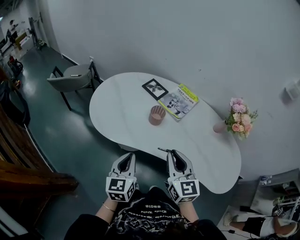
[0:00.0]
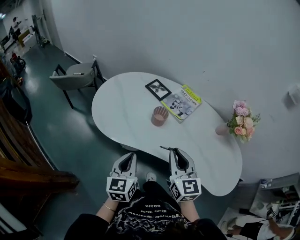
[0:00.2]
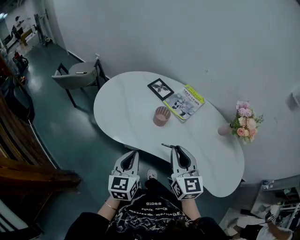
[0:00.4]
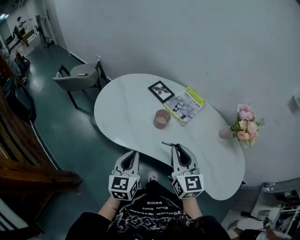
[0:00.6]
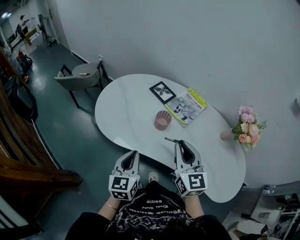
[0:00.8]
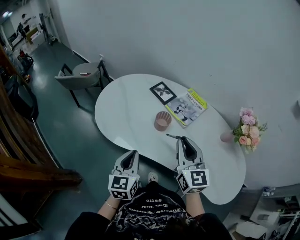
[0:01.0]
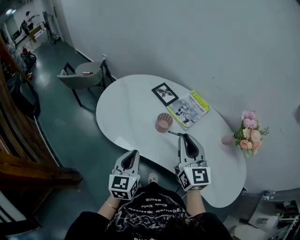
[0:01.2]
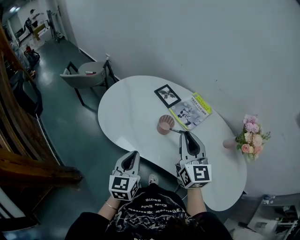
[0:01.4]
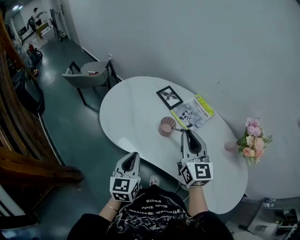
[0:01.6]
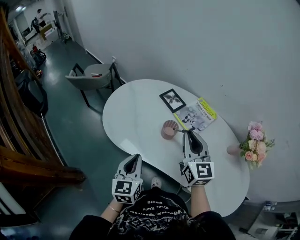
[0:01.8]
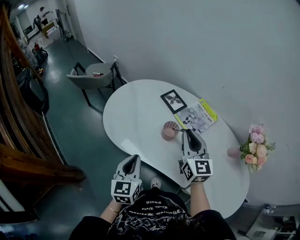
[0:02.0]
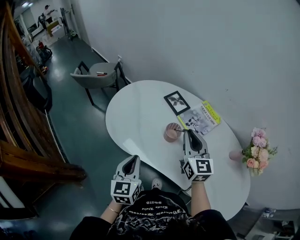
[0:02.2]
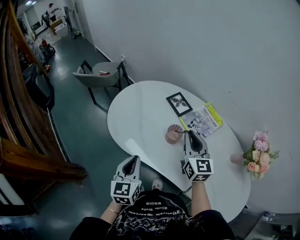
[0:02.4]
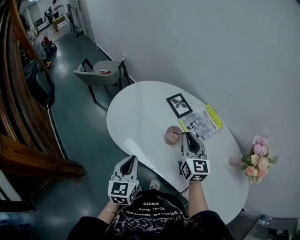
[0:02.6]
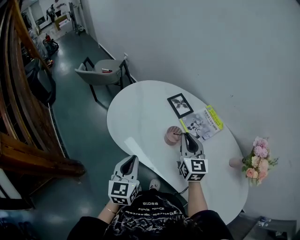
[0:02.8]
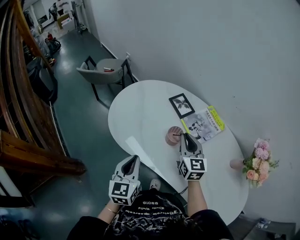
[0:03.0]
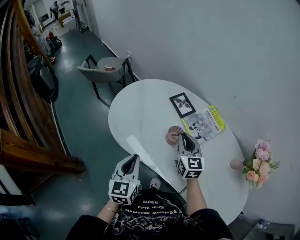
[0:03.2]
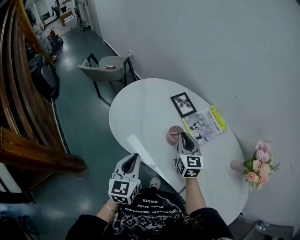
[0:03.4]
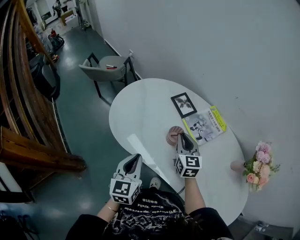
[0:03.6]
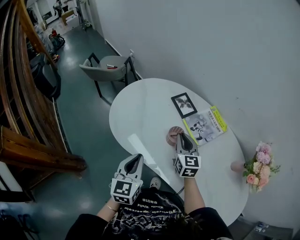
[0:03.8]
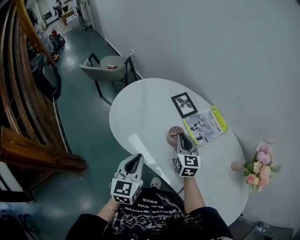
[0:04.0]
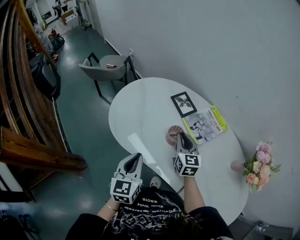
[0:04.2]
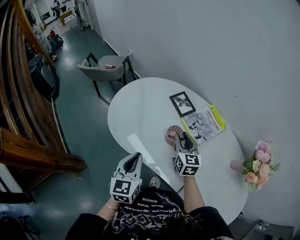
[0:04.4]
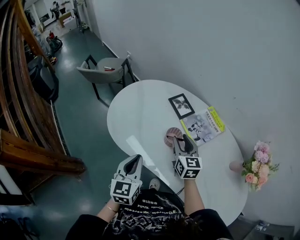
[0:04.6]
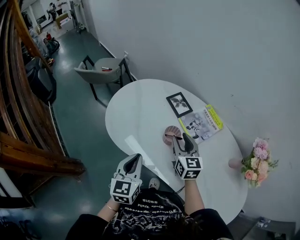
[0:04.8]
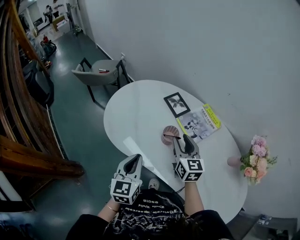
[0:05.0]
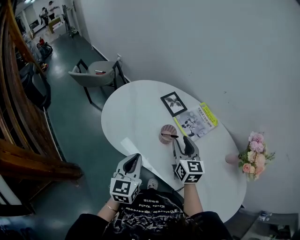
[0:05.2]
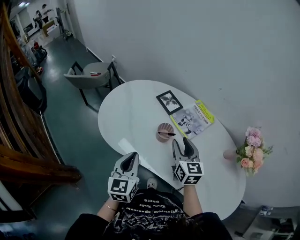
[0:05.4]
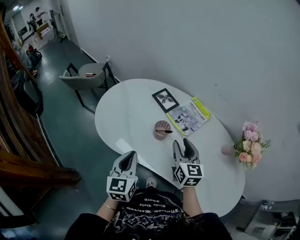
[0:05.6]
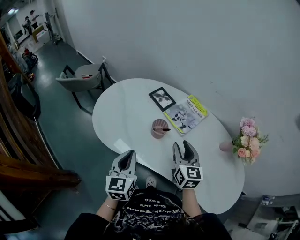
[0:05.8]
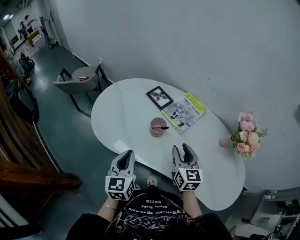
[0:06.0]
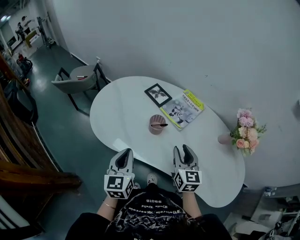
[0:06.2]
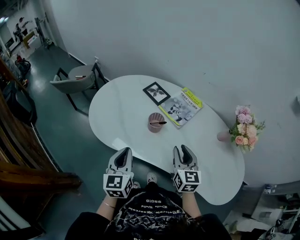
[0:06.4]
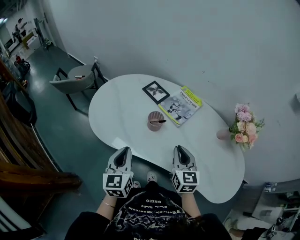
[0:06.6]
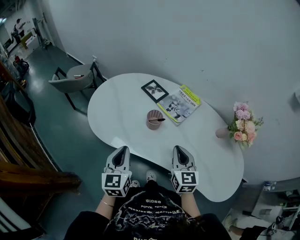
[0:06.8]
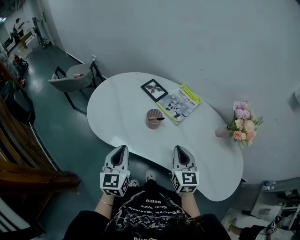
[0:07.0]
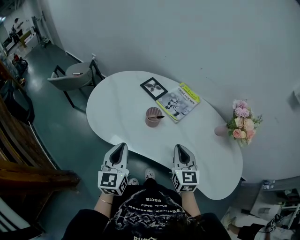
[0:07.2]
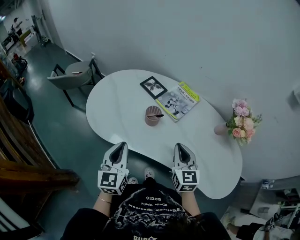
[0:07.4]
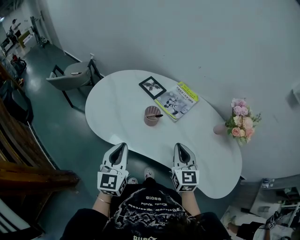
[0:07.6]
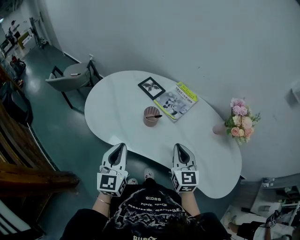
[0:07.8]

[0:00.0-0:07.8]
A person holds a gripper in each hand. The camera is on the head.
0:00.0 to 0:01.6: The left gripper travels forward by some 5 cm. The right gripper is displaced forward by about 15 cm.
0:01.6 to 0:03.2: The right gripper shifts some 15 cm downward and forward.
0:03.2 to 0:04.6: The right gripper opens its fingers.
0:04.6 to 0:06.2: The right gripper shifts roughly 15 cm backward and to the right.
0:06.2 to 0:07.8: The right gripper closes its fingers.

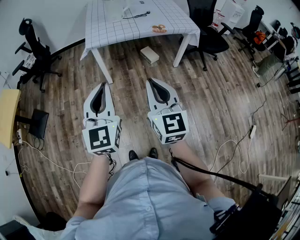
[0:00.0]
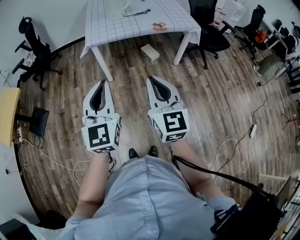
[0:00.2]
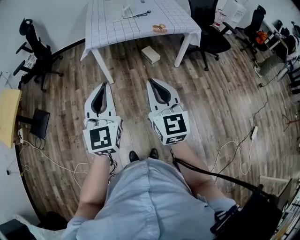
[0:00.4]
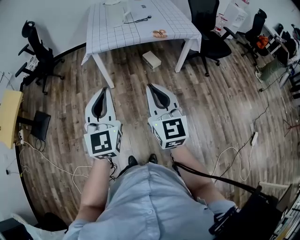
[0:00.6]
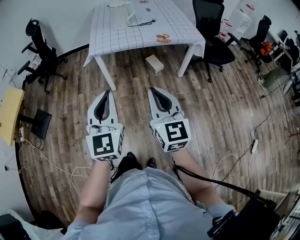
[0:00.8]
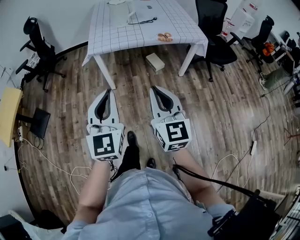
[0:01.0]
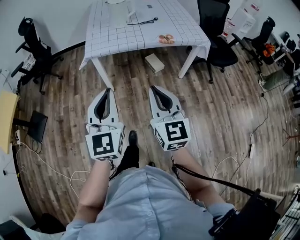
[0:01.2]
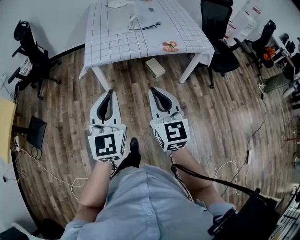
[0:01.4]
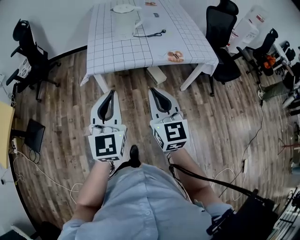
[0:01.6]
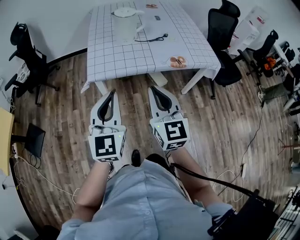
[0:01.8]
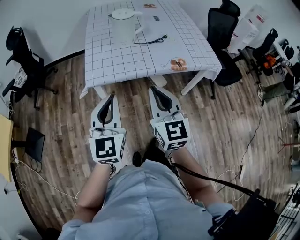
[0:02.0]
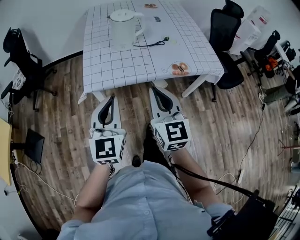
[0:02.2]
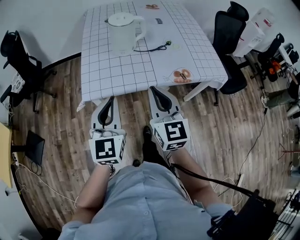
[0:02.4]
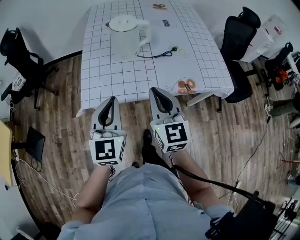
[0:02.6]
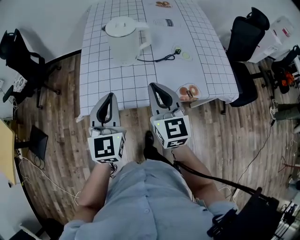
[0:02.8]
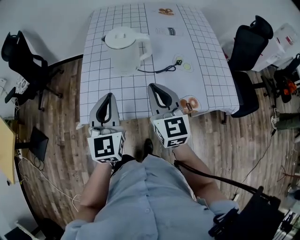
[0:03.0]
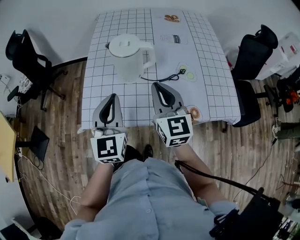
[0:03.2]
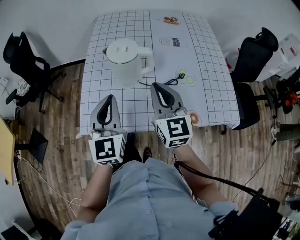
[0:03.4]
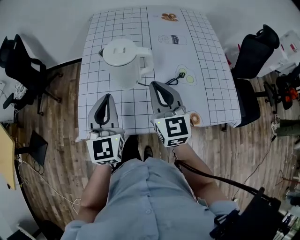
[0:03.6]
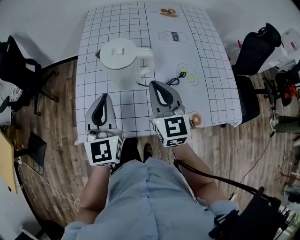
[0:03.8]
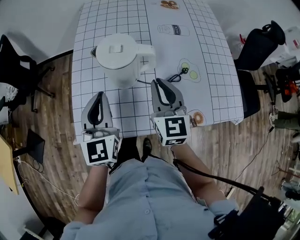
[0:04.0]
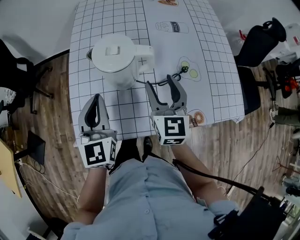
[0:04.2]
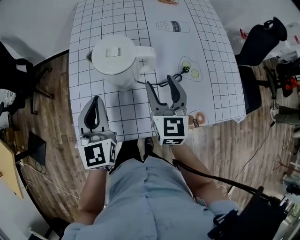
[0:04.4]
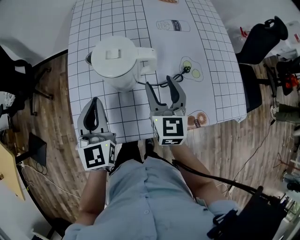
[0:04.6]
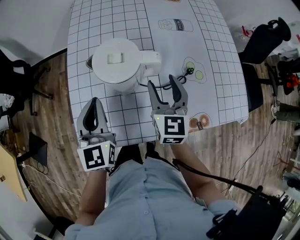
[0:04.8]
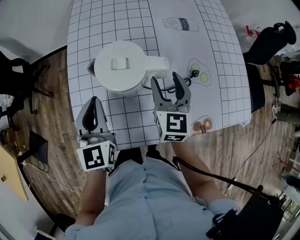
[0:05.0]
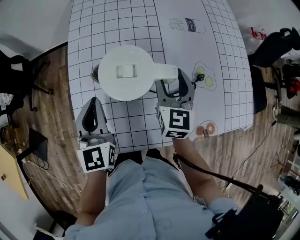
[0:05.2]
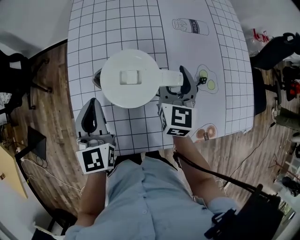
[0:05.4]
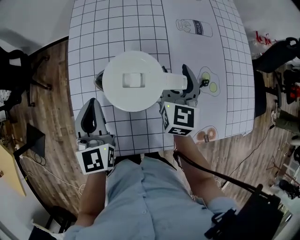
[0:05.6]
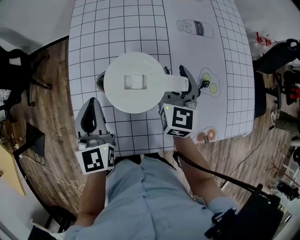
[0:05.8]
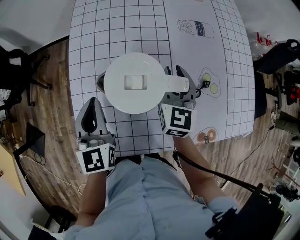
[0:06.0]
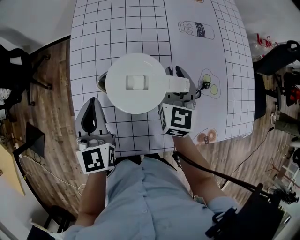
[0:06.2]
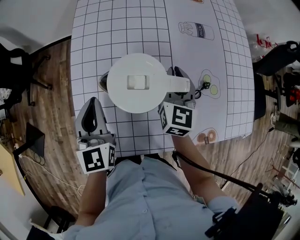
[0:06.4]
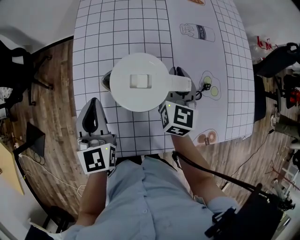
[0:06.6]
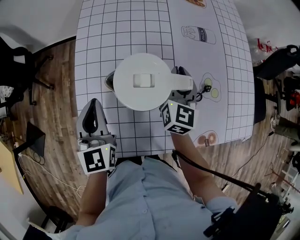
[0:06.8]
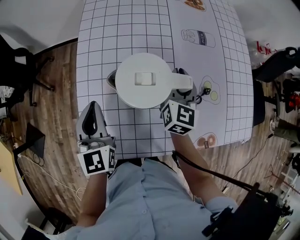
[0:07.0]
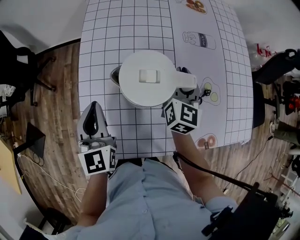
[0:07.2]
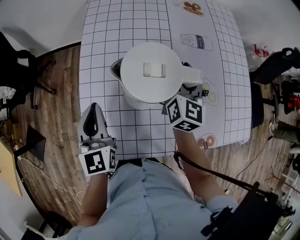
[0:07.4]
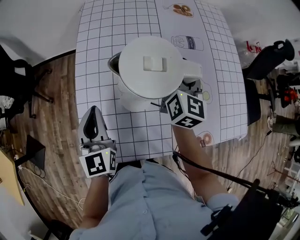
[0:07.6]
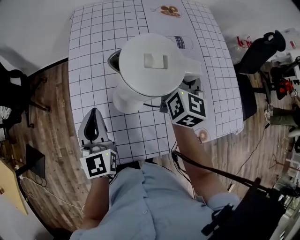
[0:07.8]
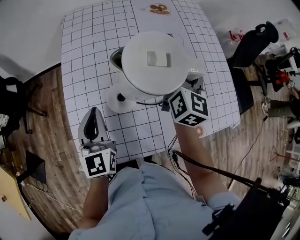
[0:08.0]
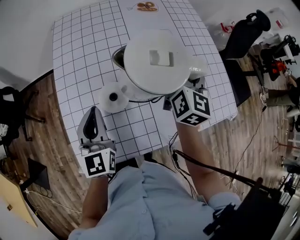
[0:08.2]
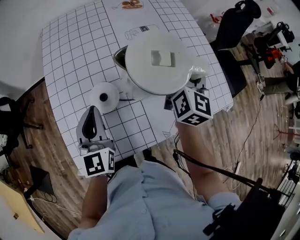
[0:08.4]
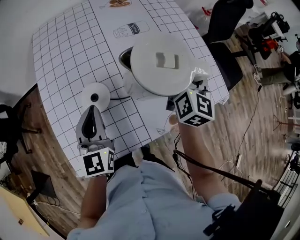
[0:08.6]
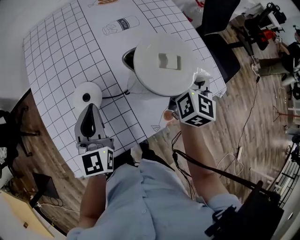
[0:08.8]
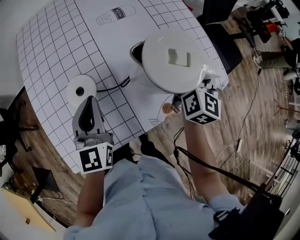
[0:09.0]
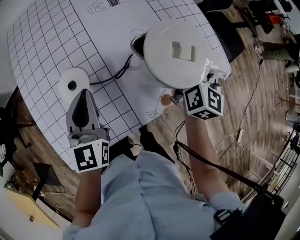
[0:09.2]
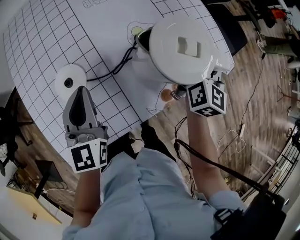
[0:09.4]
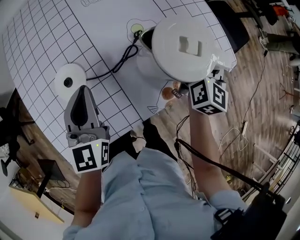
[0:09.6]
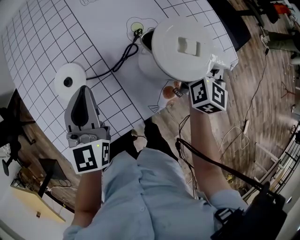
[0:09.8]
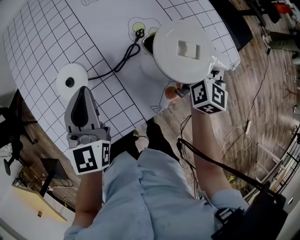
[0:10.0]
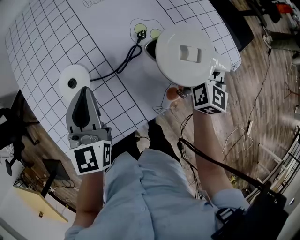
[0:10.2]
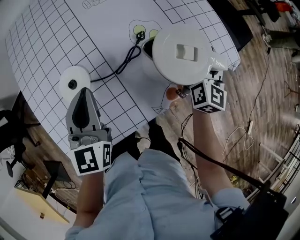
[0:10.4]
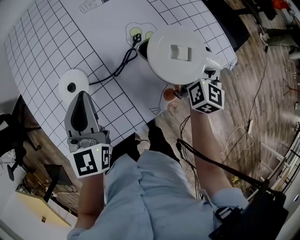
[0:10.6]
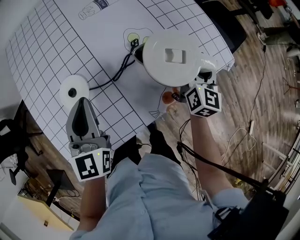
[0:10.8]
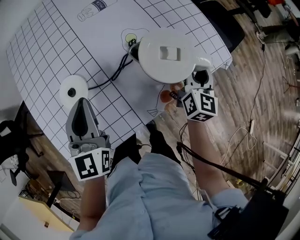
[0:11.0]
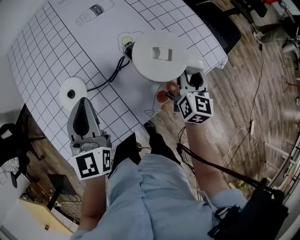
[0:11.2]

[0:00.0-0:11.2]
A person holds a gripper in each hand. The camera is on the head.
0:00.0 to 0:01.6: The grippers both shift forward by approximately 25 cm.
0:01.6 to 0:03.2: Both grippers move forward, approximately 40 cm.
0:03.2 to 0:04.8: The right gripper travels forward and downward by roughly 15 cm, and opens, while the left gripper goes roughly 15 cm forward, downward and to the left.
0:04.8 to 0:06.4: The right gripper shifts roughly 10 cm forward, and closes up. The left gripper goes some 5 cm forward.
0:06.4 to 0:08.0: The right gripper moves upward and to the right, some 15 cm, and turns by some 20 degrees. Meanwhile the left gripper moves about 5 cm.
0:08.0 to 0:09.6: The right gripper is displaced to the right by approximately 30 cm, and swivels some 30 degrees. The left gripper heads to the right, covering approximately 15 cm, and rotates roughly 20 degrees.
0:09.6 to 0:11.2: The right gripper moves backward, roughly 5 cm, and opens up; the left gripper shifts by roughly 5 cm.

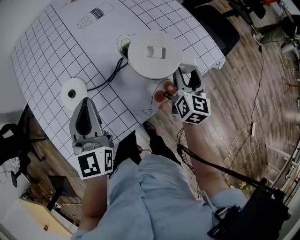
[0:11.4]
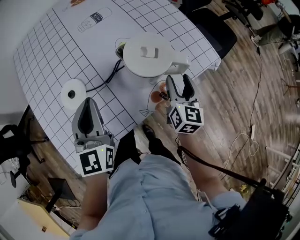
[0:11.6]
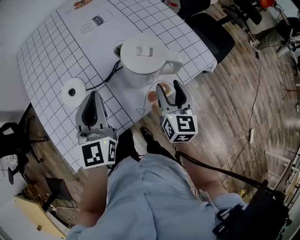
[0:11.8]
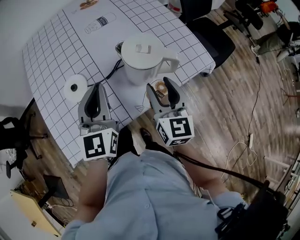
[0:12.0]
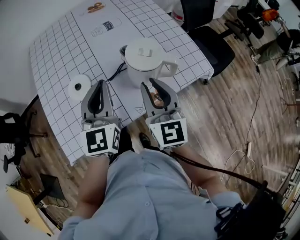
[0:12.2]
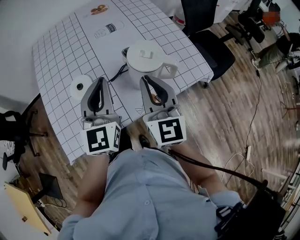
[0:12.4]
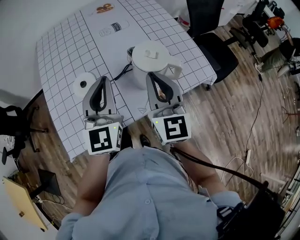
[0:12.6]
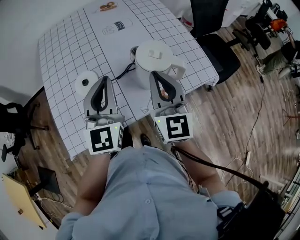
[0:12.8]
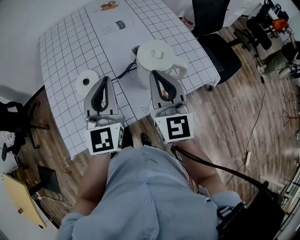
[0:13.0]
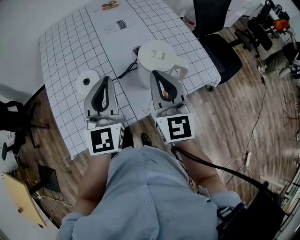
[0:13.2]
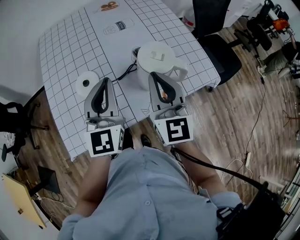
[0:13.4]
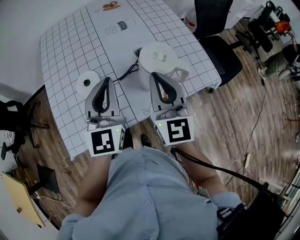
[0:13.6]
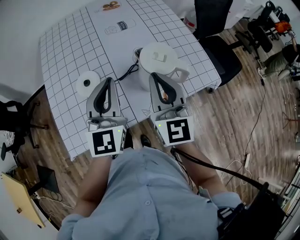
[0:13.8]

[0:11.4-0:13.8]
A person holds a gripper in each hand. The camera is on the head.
0:11.4 to 0:12.6: The left gripper travels upward by roughly 5 cm; the right gripper moves upward and to the left, about 20 cm, changes its angle by roughly 40 degrees, and closes up.
0:12.6 to 0:13.8: The grippers move only a little.

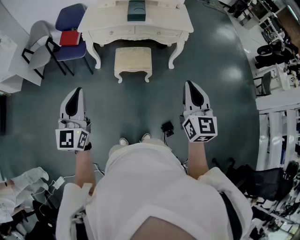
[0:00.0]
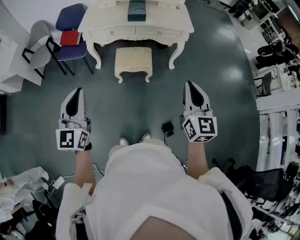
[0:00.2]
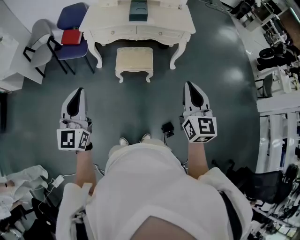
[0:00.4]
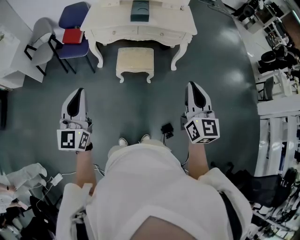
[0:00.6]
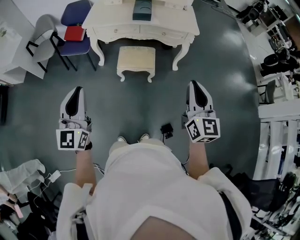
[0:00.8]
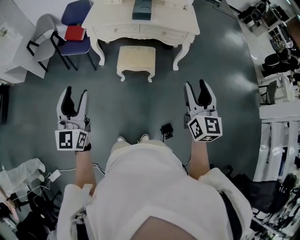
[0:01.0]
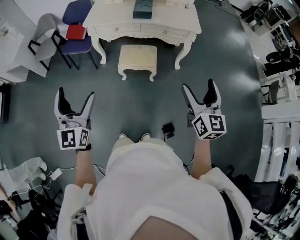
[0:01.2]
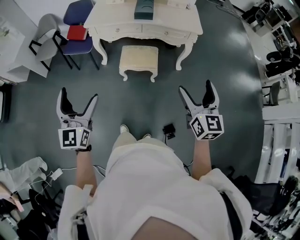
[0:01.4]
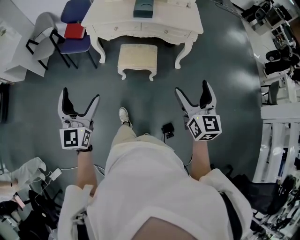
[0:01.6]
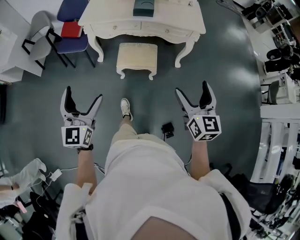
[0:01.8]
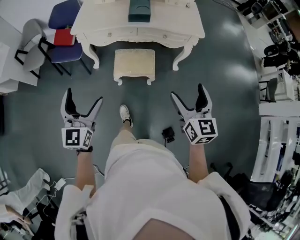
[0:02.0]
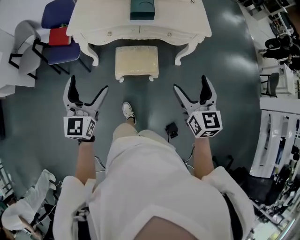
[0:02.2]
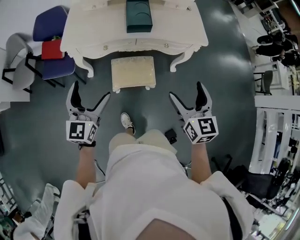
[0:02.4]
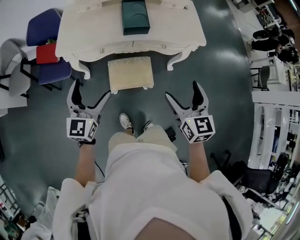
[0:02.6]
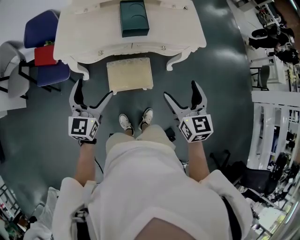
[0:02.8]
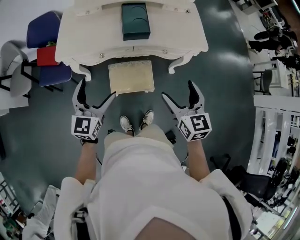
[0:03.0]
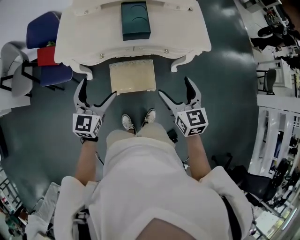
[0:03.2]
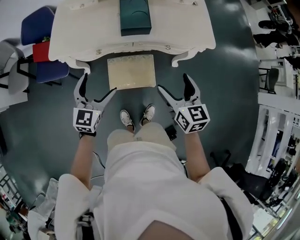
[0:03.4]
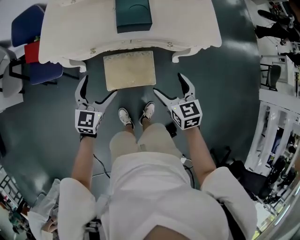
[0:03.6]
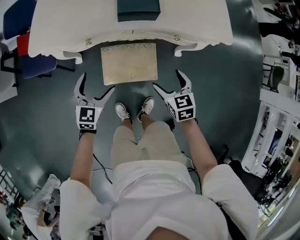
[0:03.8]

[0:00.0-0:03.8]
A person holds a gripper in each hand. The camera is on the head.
0:00.0 to 0:01.2: The right gripper moves to the right, some 5 cm, and opens; the left gripper opens up.
0:01.2 to 0:02.6: The left gripper heads forward, covering about 40 cm, and swivels roughly 30 degrees. The right gripper moves forward and to the left, some 35 cm.
0:02.6 to 0:03.8: The left gripper shifts approximately 25 cm downward, and changes its angle by about 20 degrees, while the right gripper heads downward and forward, covering about 30 cm, and swivels about 30 degrees.
